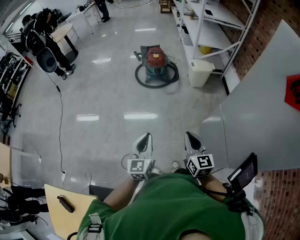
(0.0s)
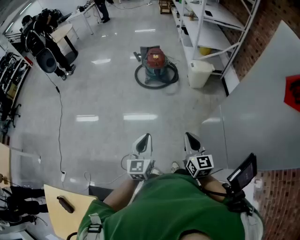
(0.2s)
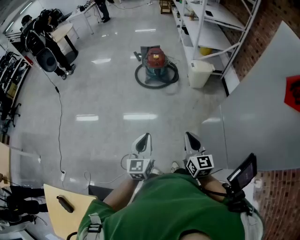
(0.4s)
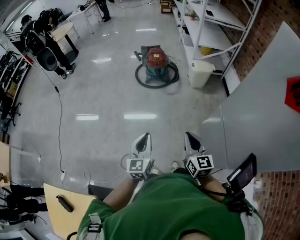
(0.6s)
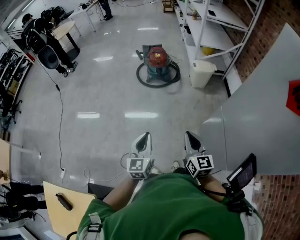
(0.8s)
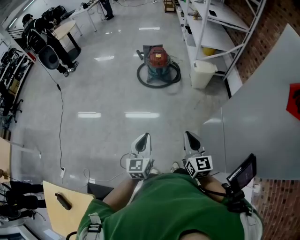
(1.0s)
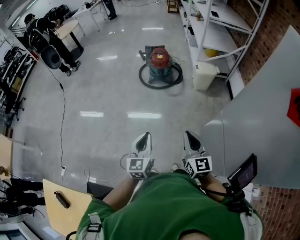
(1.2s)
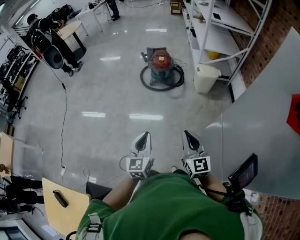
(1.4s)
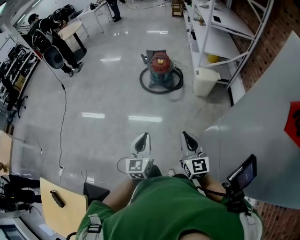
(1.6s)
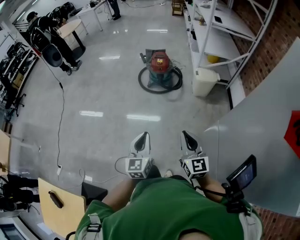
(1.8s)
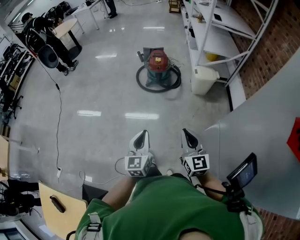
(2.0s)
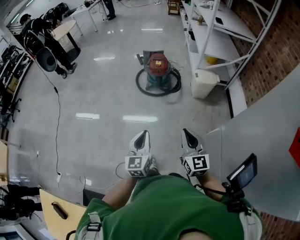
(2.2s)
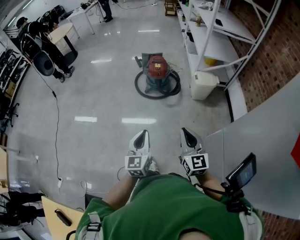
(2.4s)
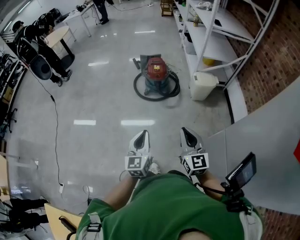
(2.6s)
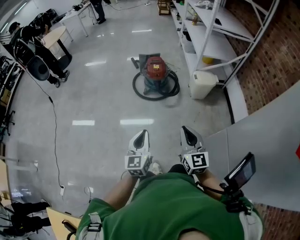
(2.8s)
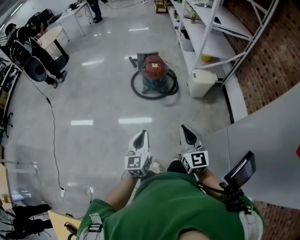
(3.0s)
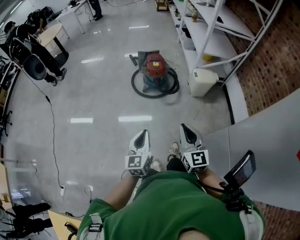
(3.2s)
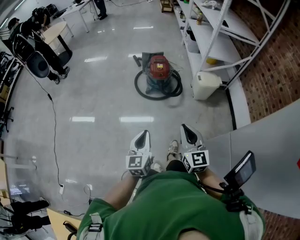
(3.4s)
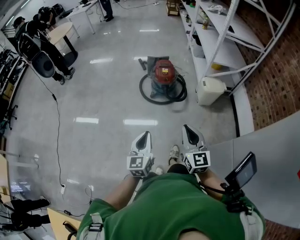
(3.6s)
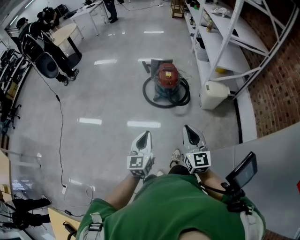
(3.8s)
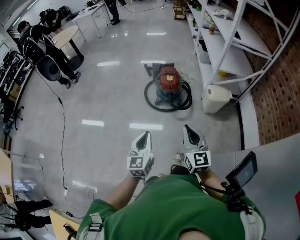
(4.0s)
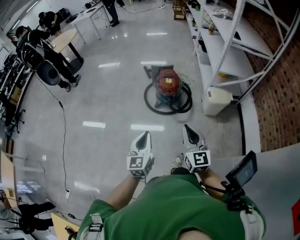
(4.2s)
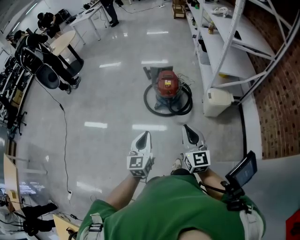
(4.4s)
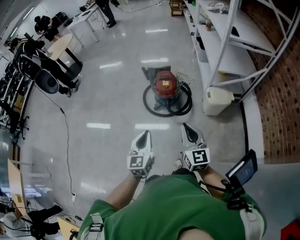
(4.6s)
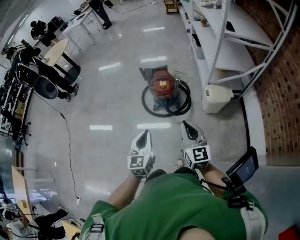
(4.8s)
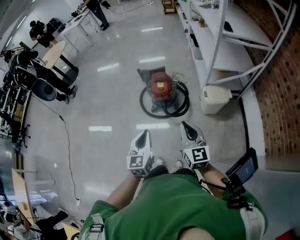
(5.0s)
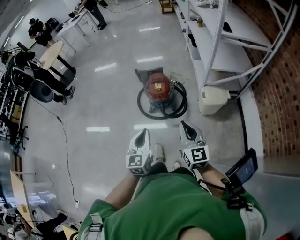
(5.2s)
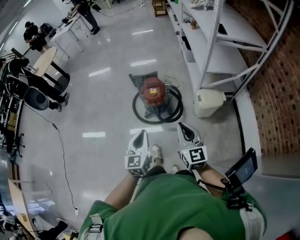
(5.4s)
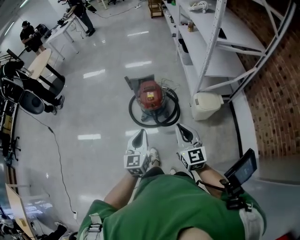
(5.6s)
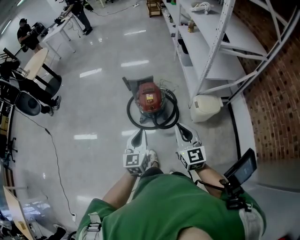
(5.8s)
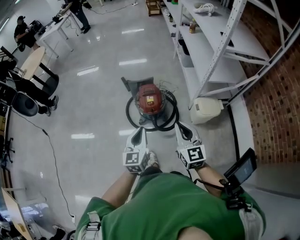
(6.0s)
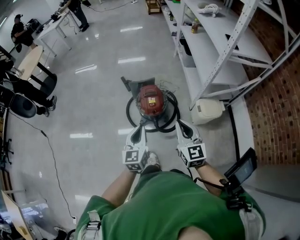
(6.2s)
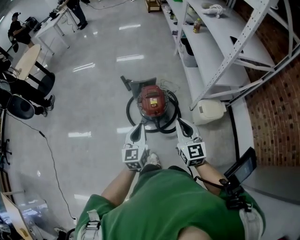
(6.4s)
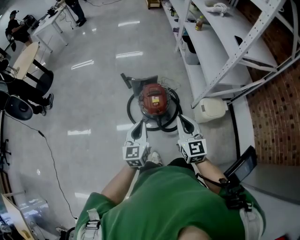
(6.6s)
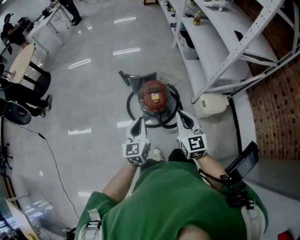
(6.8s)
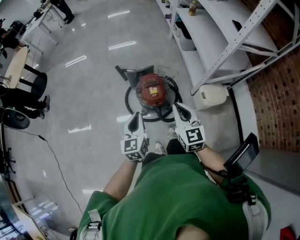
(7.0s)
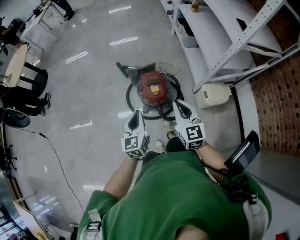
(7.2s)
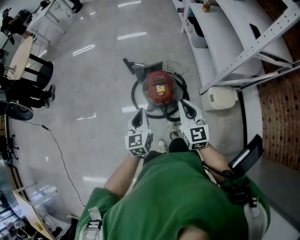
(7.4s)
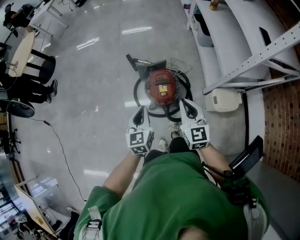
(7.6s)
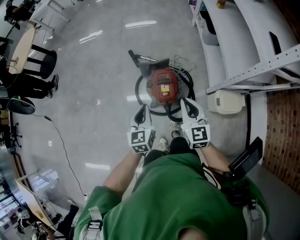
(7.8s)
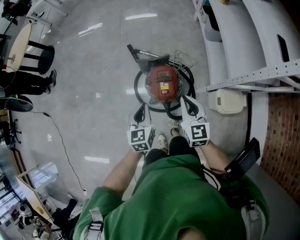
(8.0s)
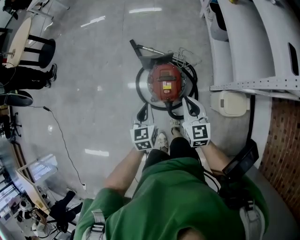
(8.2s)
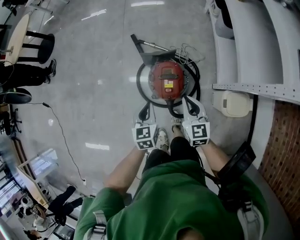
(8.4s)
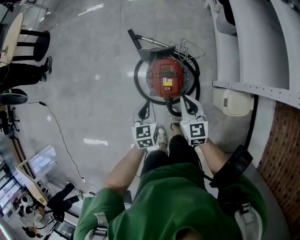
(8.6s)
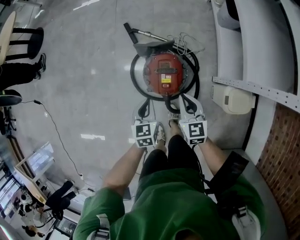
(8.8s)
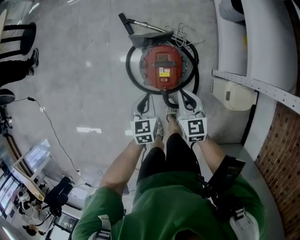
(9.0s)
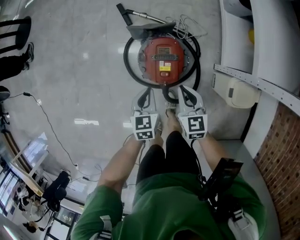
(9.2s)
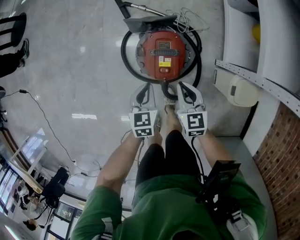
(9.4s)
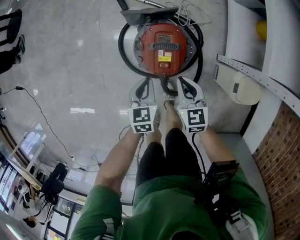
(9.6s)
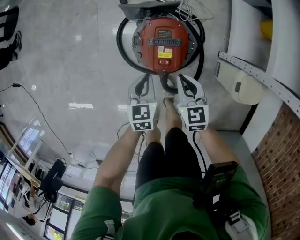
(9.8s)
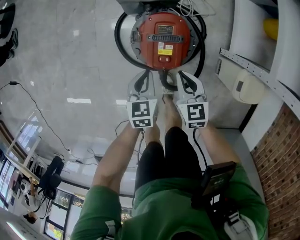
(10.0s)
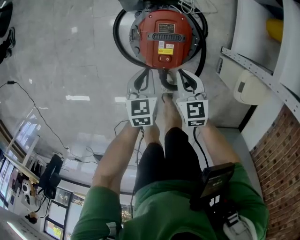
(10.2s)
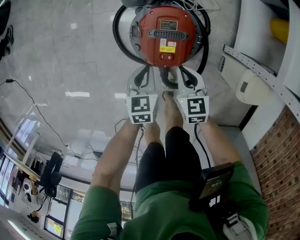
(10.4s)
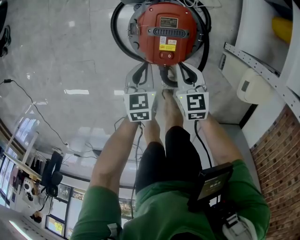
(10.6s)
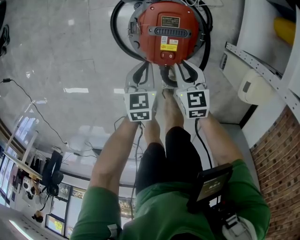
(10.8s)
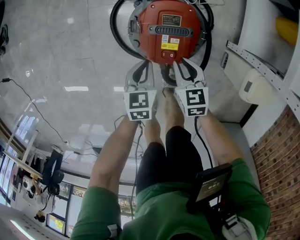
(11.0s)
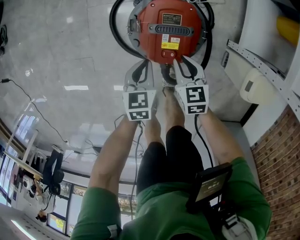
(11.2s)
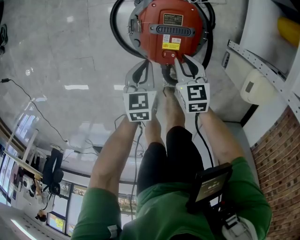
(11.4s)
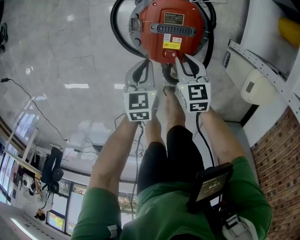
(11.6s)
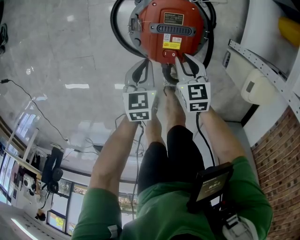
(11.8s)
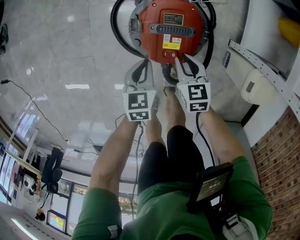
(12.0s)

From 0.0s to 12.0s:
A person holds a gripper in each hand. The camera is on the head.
From 0.0s to 1.6s: Both grippers move forward and to the right, approximately 10 cm.
From 1.6s to 3.0s: Both grippers move forward and to the left, approximately 20 cm.
From 3.0s to 4.4s: The grippers both shift forward by about 20 cm.
From 4.4s to 6.0s: Both grippers move forward, roughly 25 cm.
From 6.0s to 7.6s: Both grippers move forward, about 20 cm.
From 7.6s to 9.0s: The right gripper goes approximately 25 cm downward and forward, while the left gripper is displaced downward by some 25 cm, and rotates some 20 degrees.
From 9.0s to 10.4s: Both grippers travel together downward, some 20 cm.
From 10.4s to 12.0s: The right gripper travels downward by about 5 cm.

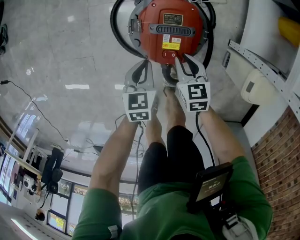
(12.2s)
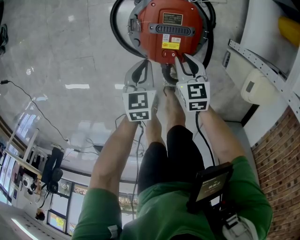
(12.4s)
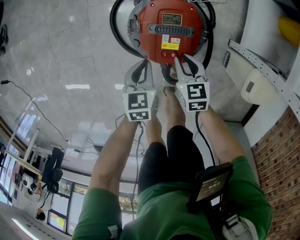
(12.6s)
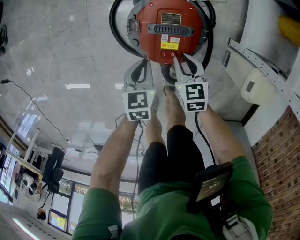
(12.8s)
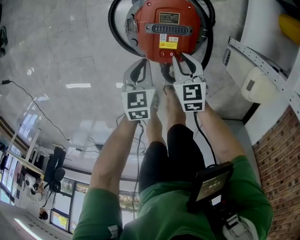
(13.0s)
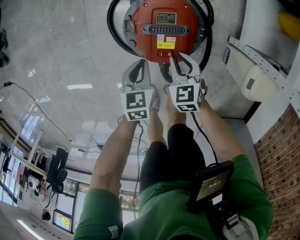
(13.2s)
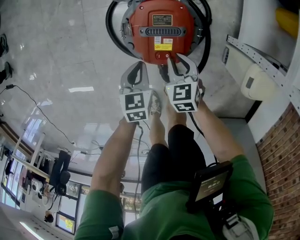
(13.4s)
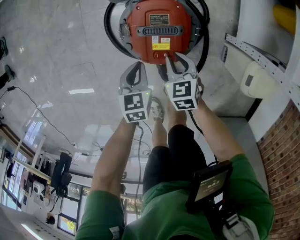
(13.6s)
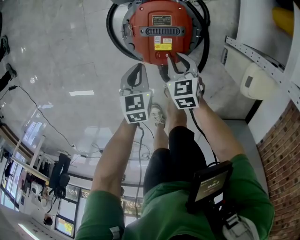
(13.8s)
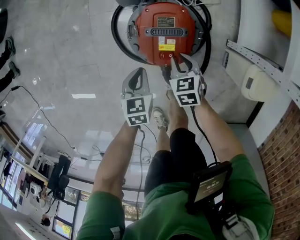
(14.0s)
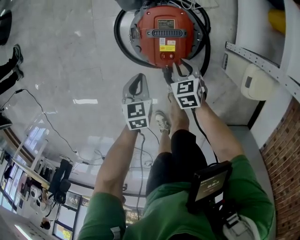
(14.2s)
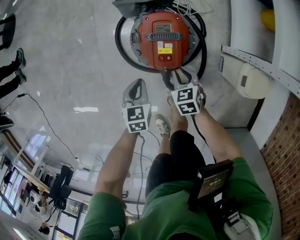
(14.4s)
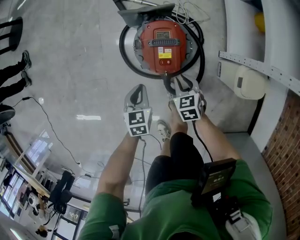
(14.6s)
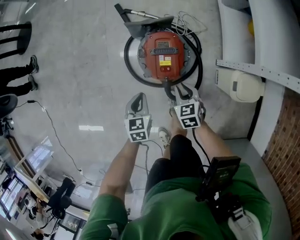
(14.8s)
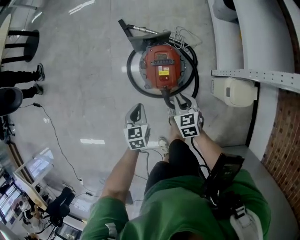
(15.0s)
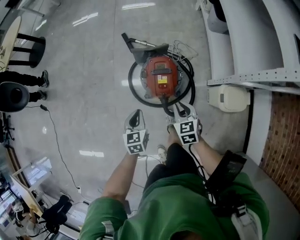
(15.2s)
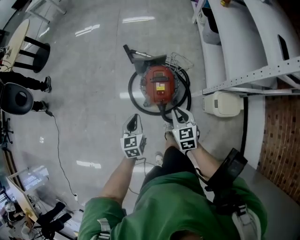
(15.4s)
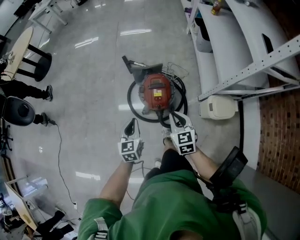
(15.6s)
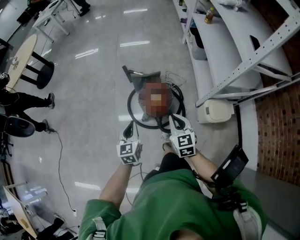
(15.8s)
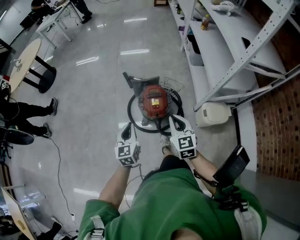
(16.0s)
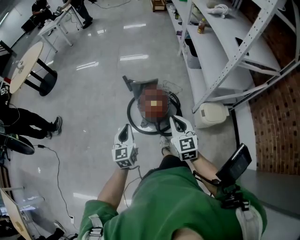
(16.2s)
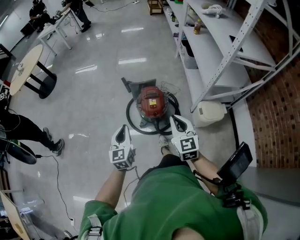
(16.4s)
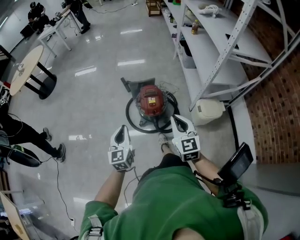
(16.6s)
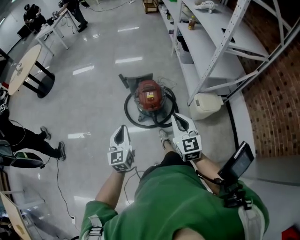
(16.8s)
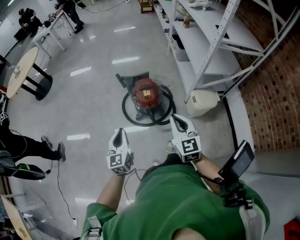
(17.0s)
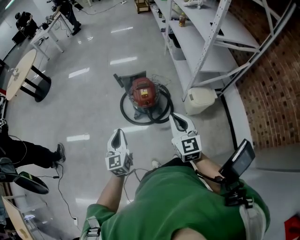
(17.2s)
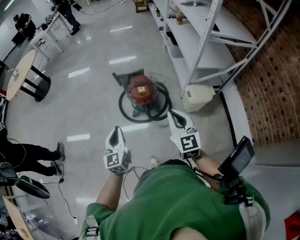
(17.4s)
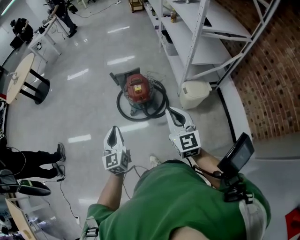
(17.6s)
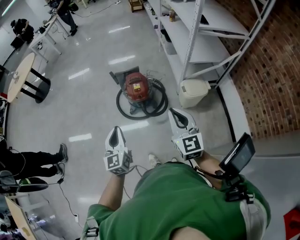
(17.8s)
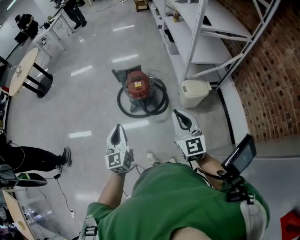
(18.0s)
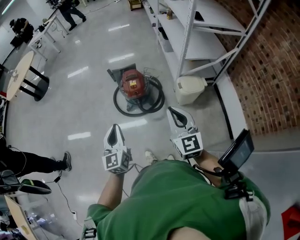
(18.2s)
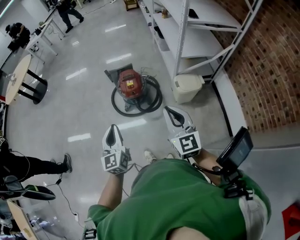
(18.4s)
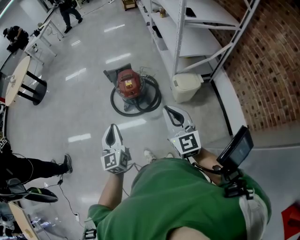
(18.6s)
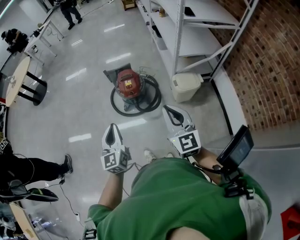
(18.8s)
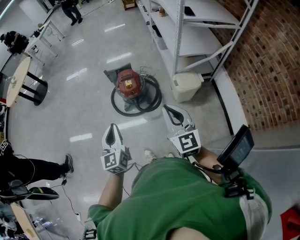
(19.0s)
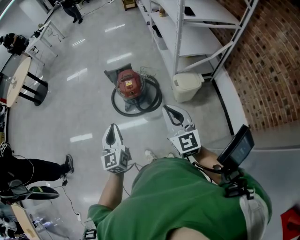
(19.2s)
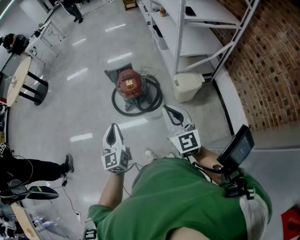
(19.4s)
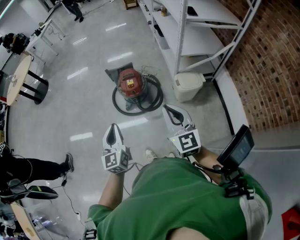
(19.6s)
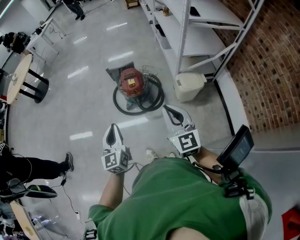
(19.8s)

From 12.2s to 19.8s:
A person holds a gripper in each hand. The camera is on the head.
From 12.2s to 13.8s: There are only small adjustments of the grippers.
From 13.8s to 15.2s: The two grippers go roughly 25 cm upward.
From 15.2s to 16.8s: The two grippers go roughly 35 cm upward and backward. The left gripper turns by approximately 30 degrees. Meanwhile the right gripper rotates some 30 degrees.
From 16.8s to 18.2s: The left gripper goes about 20 cm backward, to the right and upward. The right gripper is displaced backward and to the right by some 20 cm.
From 18.2s to 19.8s: The grippers make only small movements.

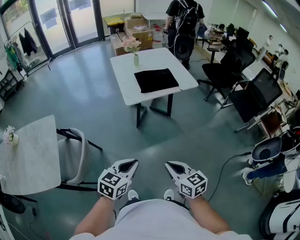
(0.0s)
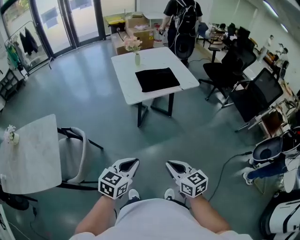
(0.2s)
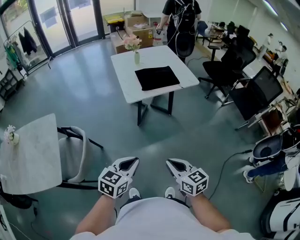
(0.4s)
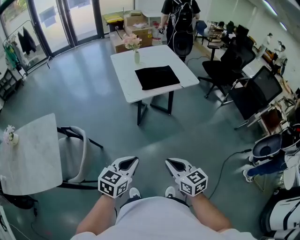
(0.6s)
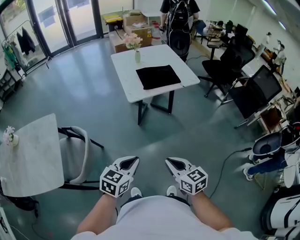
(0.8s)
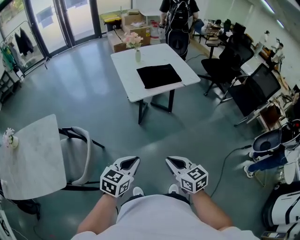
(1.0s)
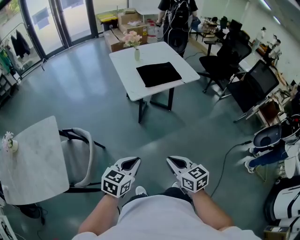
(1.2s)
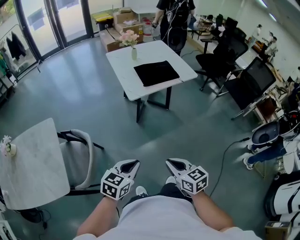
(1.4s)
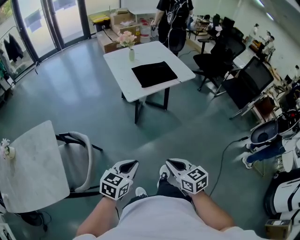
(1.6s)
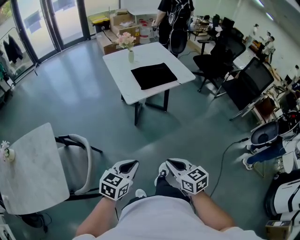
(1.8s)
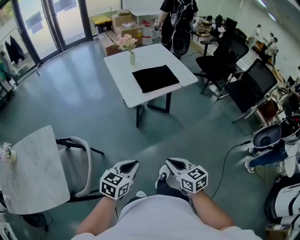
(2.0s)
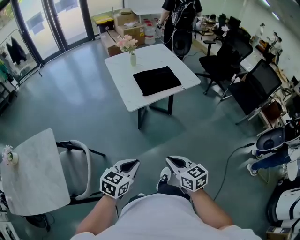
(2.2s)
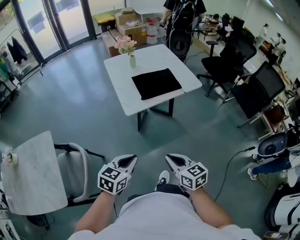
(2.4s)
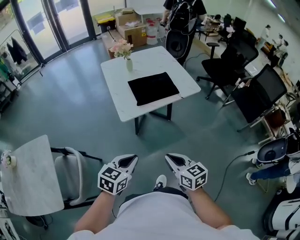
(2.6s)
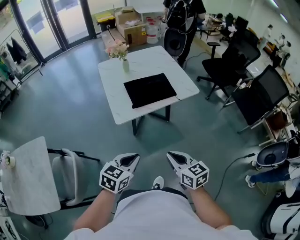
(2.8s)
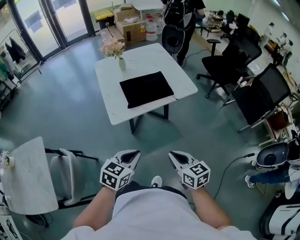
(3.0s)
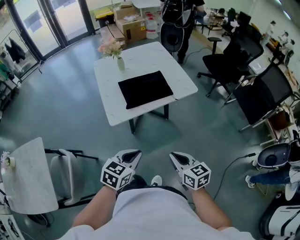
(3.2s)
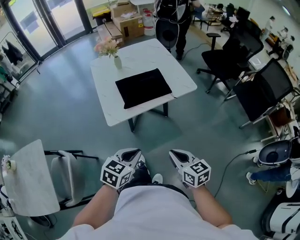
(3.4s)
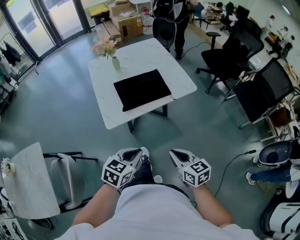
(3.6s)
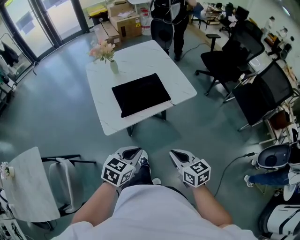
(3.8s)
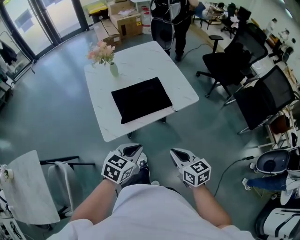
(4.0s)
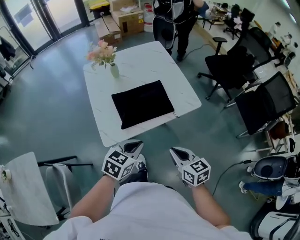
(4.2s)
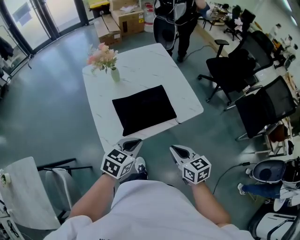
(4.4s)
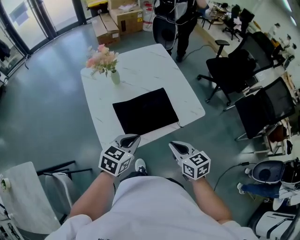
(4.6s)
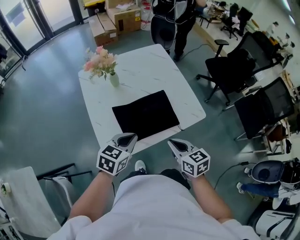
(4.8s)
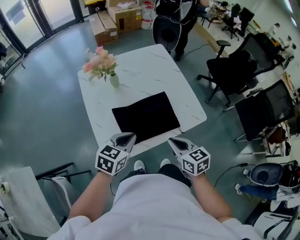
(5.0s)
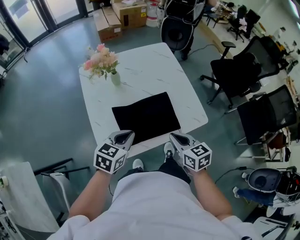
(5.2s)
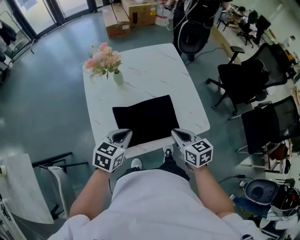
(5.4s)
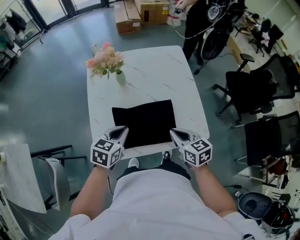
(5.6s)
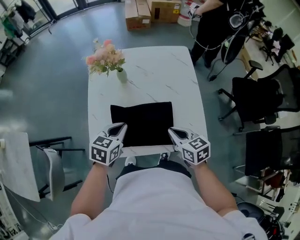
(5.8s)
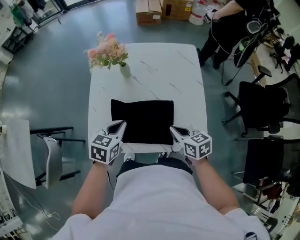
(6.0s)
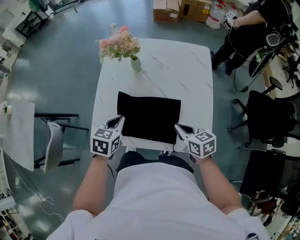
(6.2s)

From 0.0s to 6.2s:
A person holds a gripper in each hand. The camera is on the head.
From 0.0s to 1.6s: Both grippers travel together to the left, roughly 10 cm.
From 1.6s to 3.2s: The two grippers go roughly 30 cm forward and to the right.
From 3.2s to 4.6s: The grippers both shift forward by about 30 cm.
From 4.6s to 6.2s: The right gripper moves some 25 cm, and changes its angle by roughly 30 degrees. The left gripper ends up roughly 15 cm from where it was, and swivels some 40 degrees.
